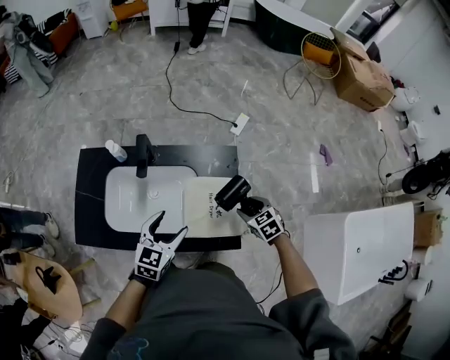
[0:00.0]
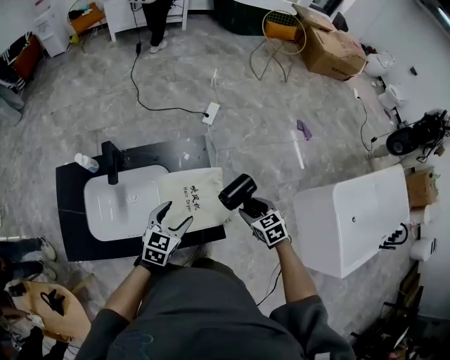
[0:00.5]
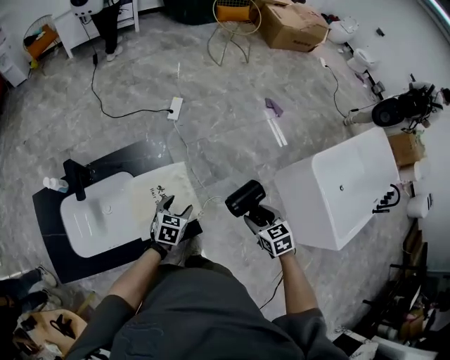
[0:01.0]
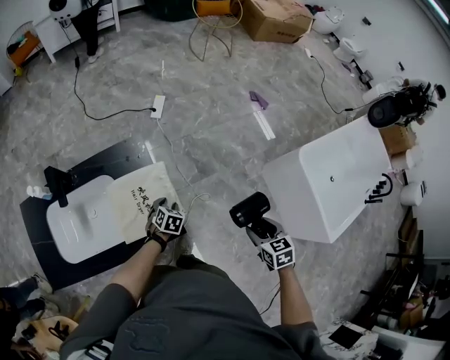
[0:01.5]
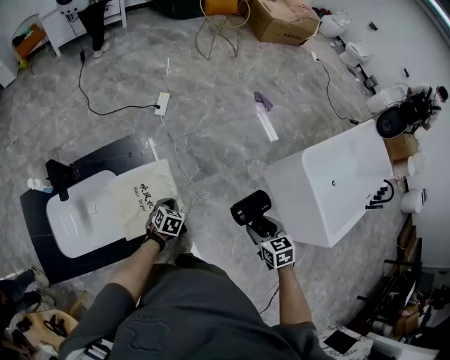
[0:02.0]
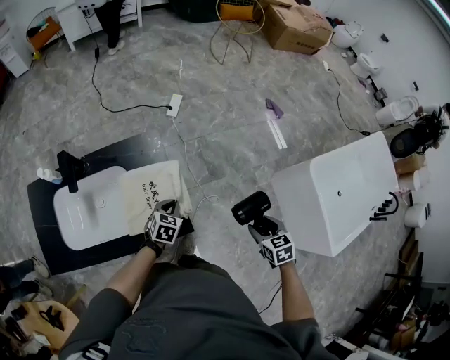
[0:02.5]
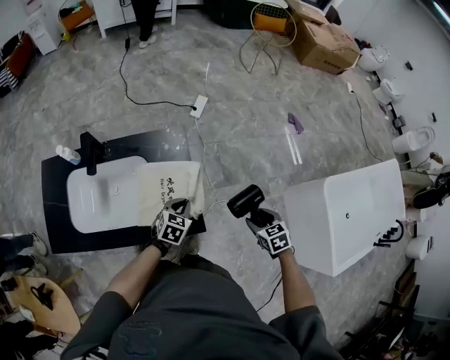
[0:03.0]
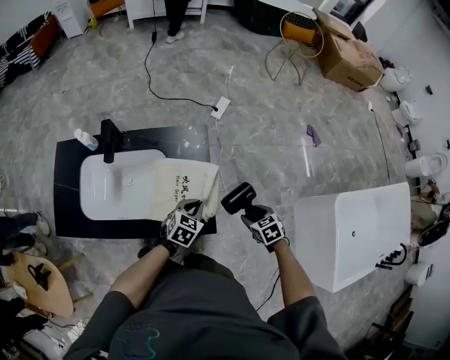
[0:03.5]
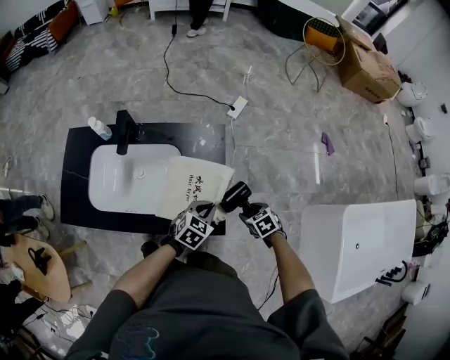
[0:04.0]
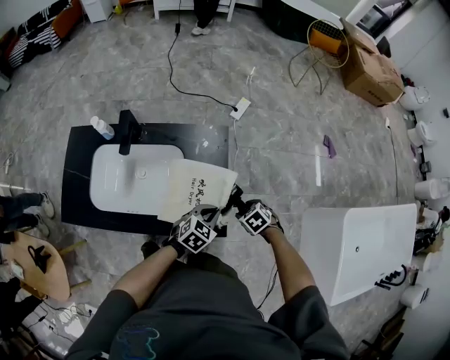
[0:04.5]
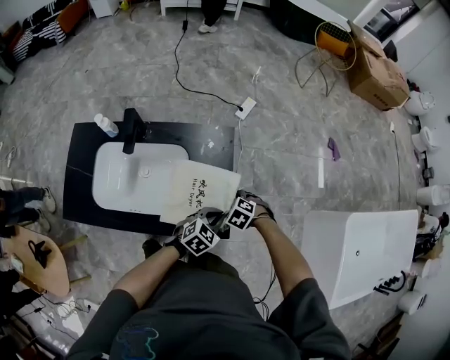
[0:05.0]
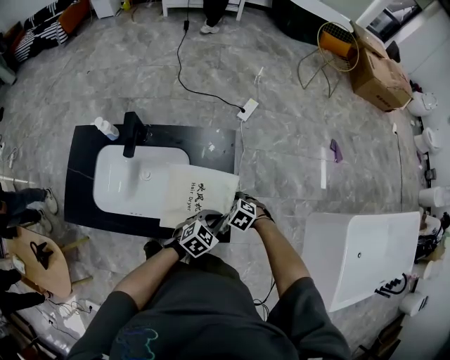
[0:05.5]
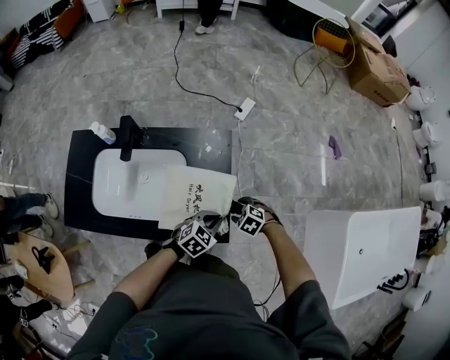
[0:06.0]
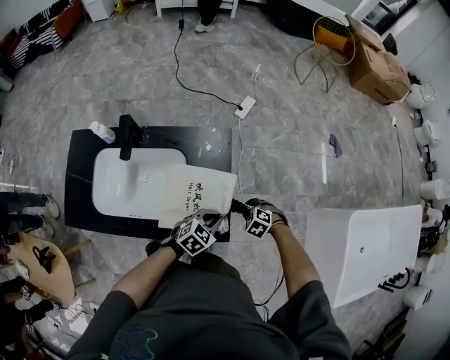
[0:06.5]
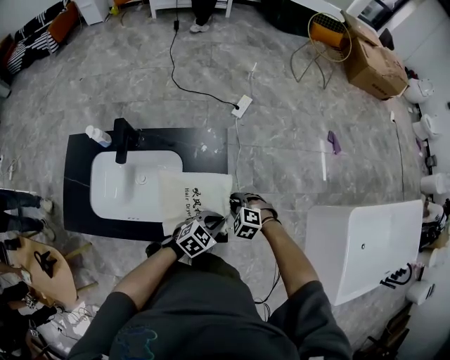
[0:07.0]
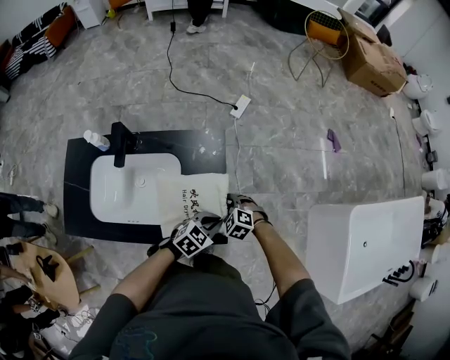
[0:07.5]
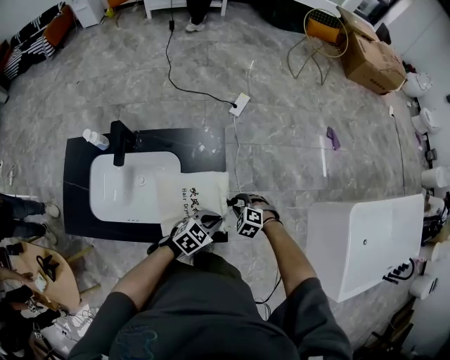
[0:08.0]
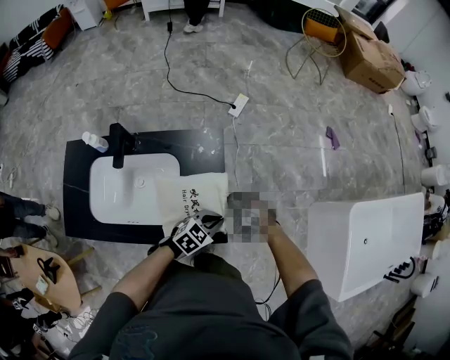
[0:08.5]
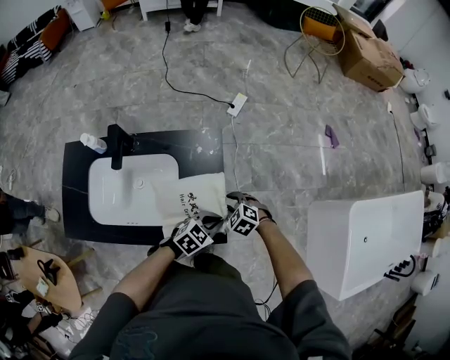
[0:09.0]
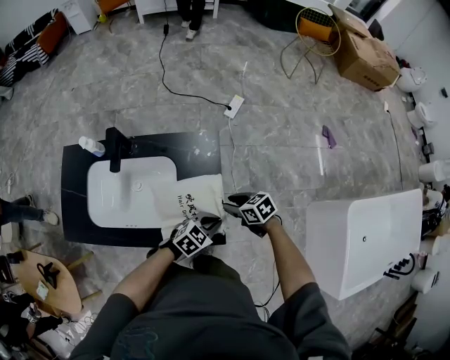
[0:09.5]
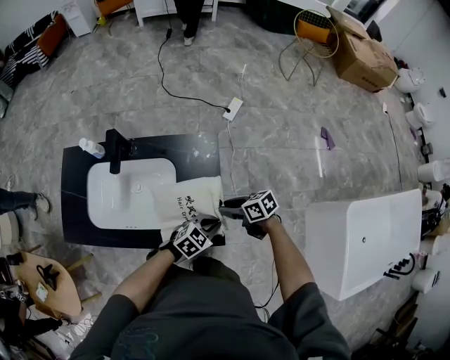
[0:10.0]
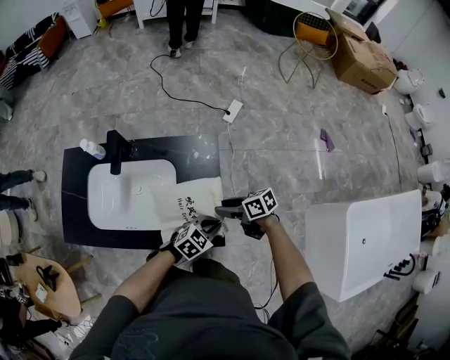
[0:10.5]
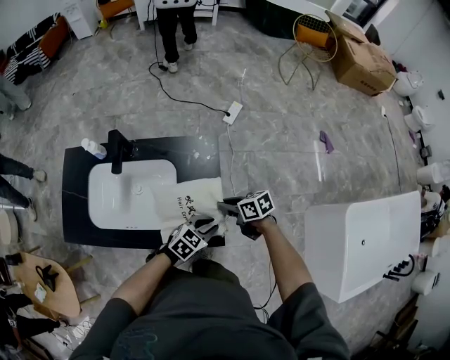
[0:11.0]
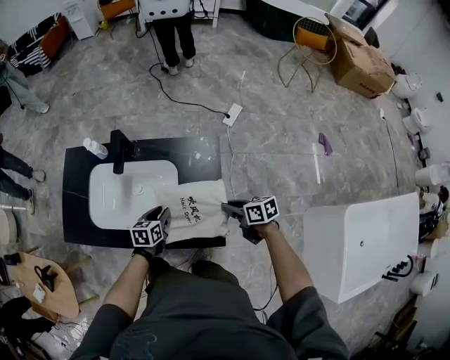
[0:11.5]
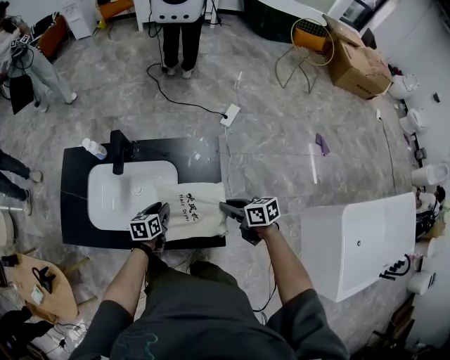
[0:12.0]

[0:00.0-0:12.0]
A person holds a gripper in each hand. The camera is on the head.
0:00.0 to 0:02.0: The left gripper ends up about 35 cm from where it was, turns by some 30 degrees, and closes its fingers, while the right gripper ends up roughly 35 cm from where it was, and rotates some 40 degrees.
0:02.0 to 0:04.0: The left gripper heads upward and to the left, covering some 10 cm, while the right gripper moves to the left, downward and forward, approximately 25 cm, and turns by about 40 degrees.
0:04.0 to 0:06.0: The right gripper changes its angle by roughly 30 degrees.
0:06.0 to 0:08.0: The right gripper closes up.
0:08.0 to 0:10.0: The right gripper heads upward, covering some 5 cm, and tips its fingers upward by about 30 degrees.
0:10.0 to 0:12.0: The left gripper shifts by about 25 cm, and rolls counterclockwise, seen from behind, by about 50 degrees.

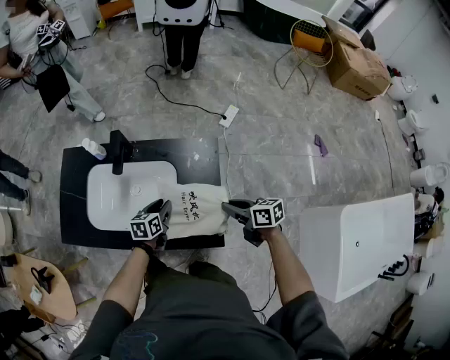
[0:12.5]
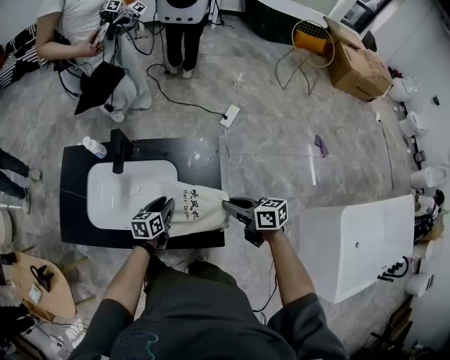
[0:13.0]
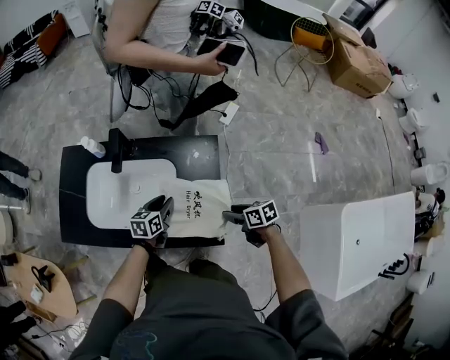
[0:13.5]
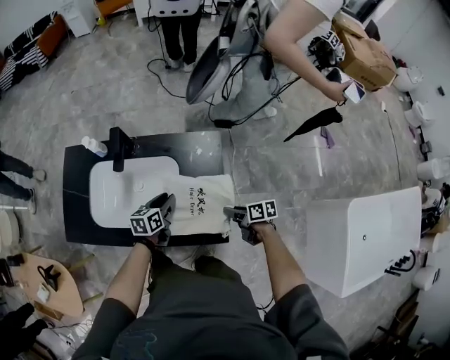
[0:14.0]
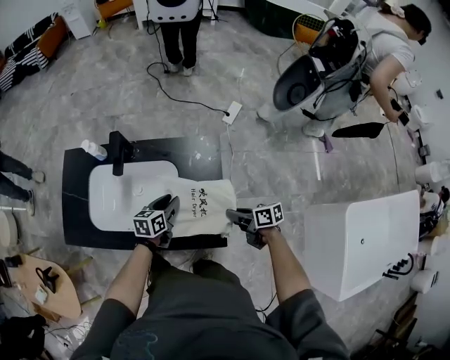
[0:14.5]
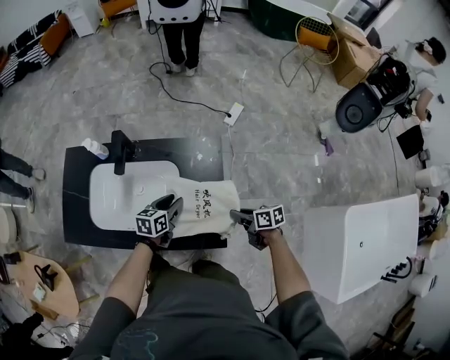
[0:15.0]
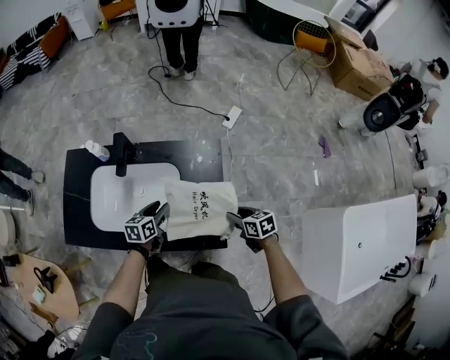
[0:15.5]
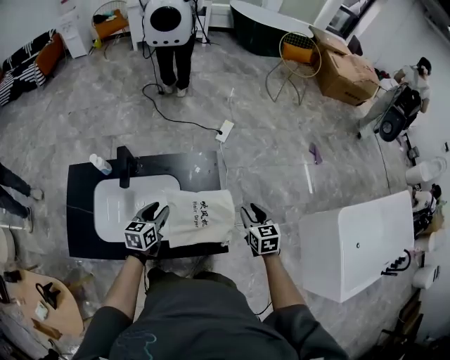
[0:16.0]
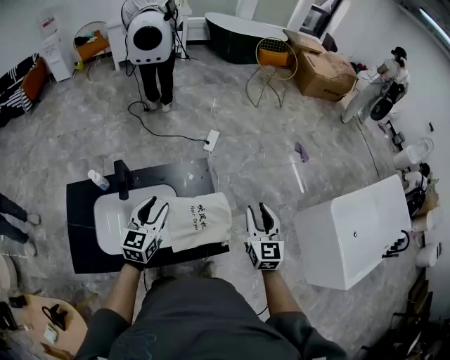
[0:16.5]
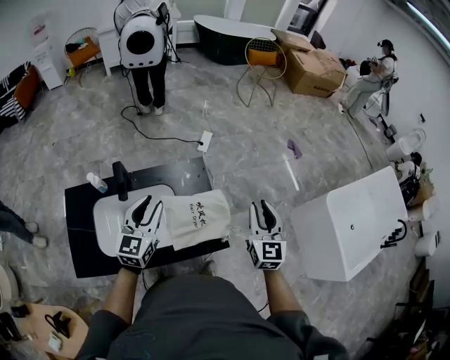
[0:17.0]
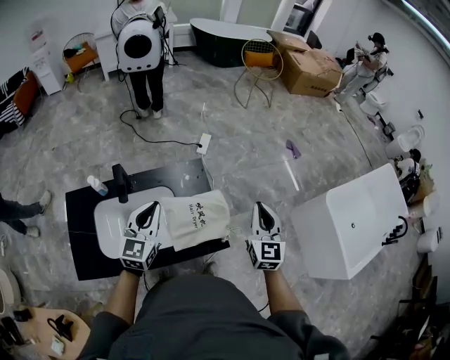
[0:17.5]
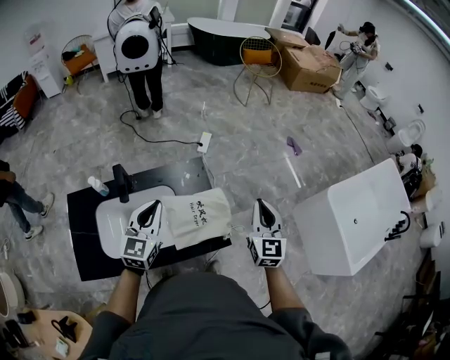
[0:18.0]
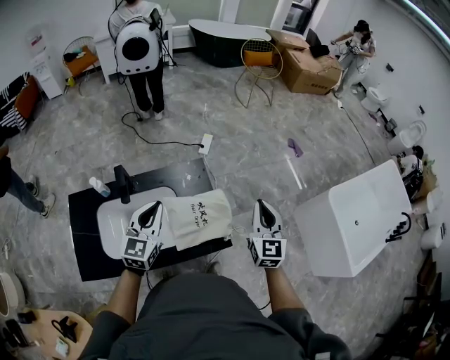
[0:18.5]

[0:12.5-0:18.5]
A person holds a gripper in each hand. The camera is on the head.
0:12.5 to 0:14.5: The right gripper heads downward, covering roughly 5 cm, and opens and closes again.
0:14.5 to 0:16.5: The two grippers go roughly 25 cm upward. The left gripper turns by roughly 40 degrees, while the right gripper changes its angle by approximately 80 degrees, and opens.
0:16.5 to 0:18.5: The right gripper ends up about 5 cm from where it was, and closes up; the left gripper heads upward, covering about 5 cm, and closes its fingers.

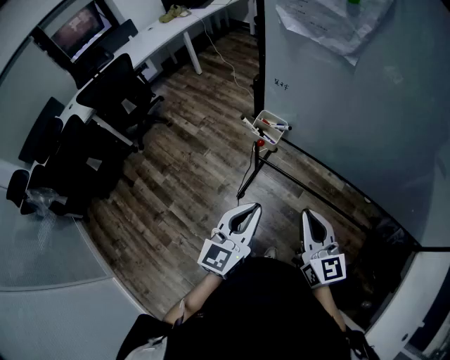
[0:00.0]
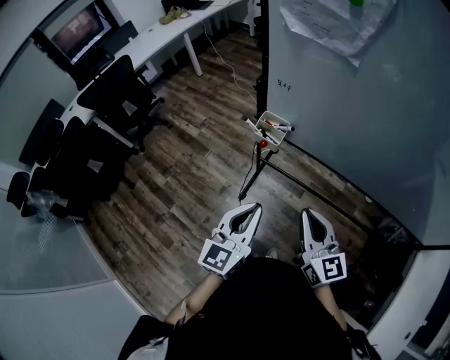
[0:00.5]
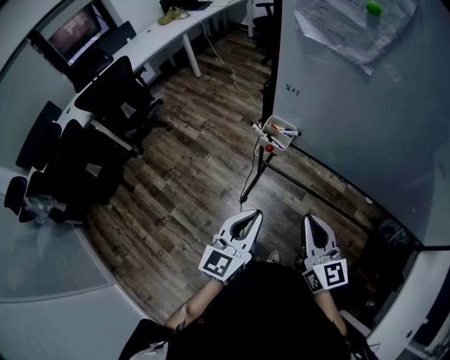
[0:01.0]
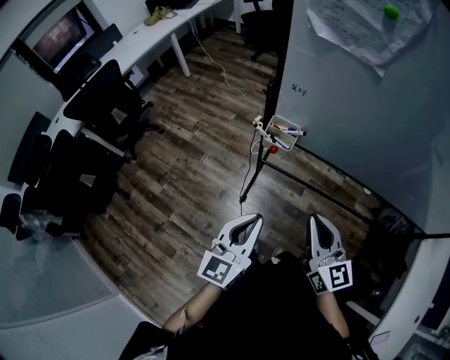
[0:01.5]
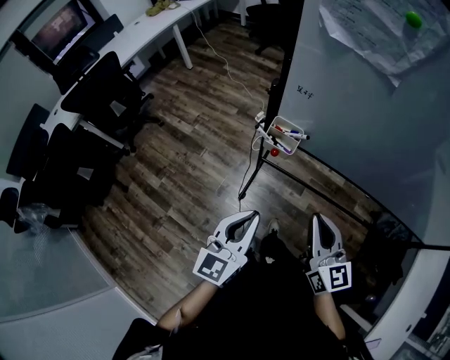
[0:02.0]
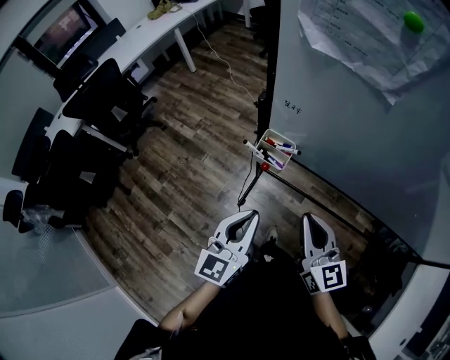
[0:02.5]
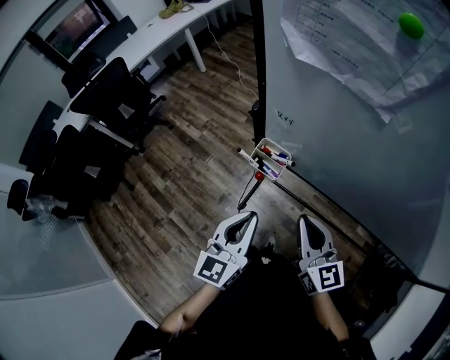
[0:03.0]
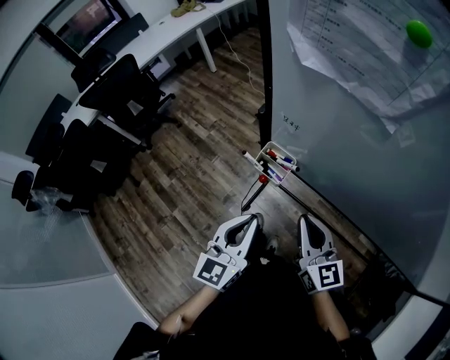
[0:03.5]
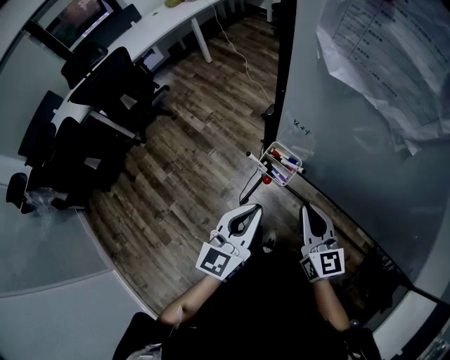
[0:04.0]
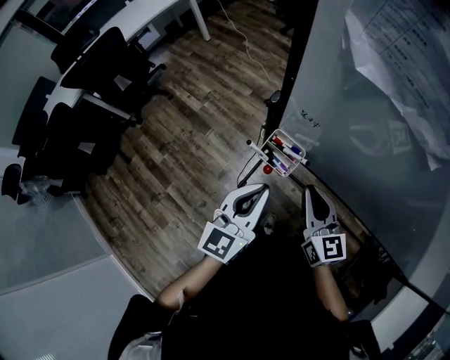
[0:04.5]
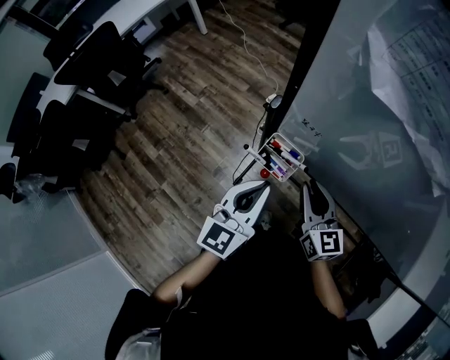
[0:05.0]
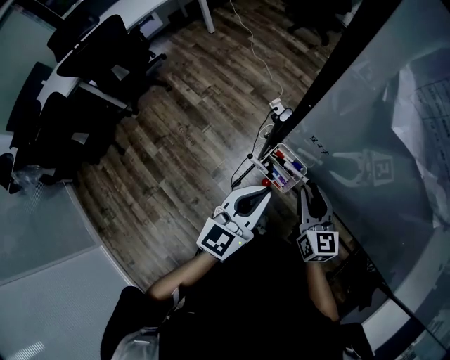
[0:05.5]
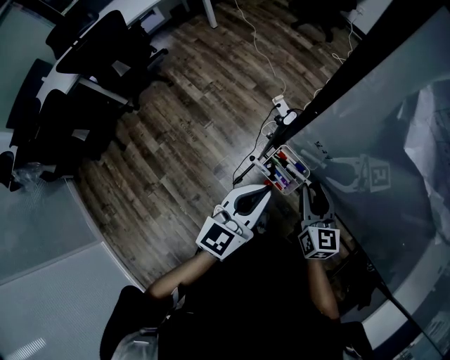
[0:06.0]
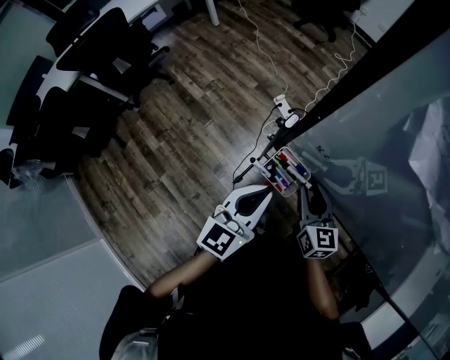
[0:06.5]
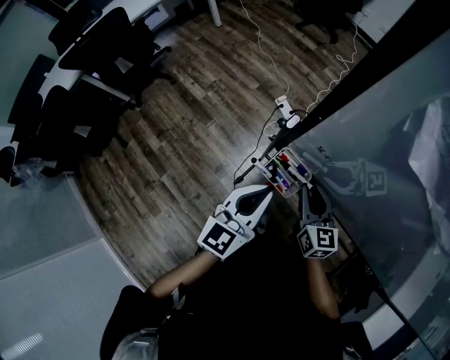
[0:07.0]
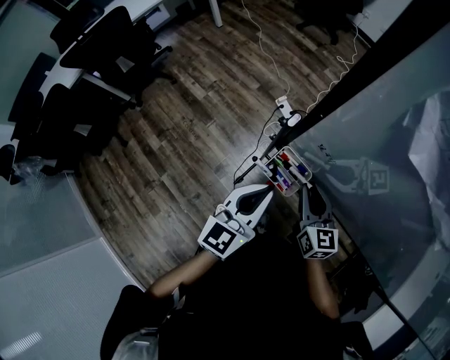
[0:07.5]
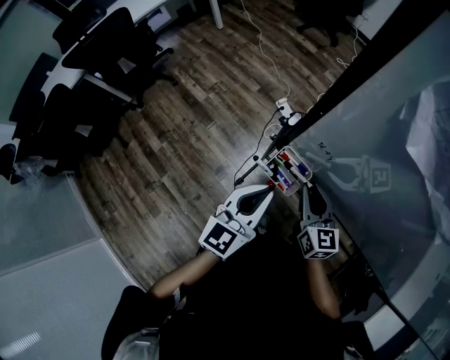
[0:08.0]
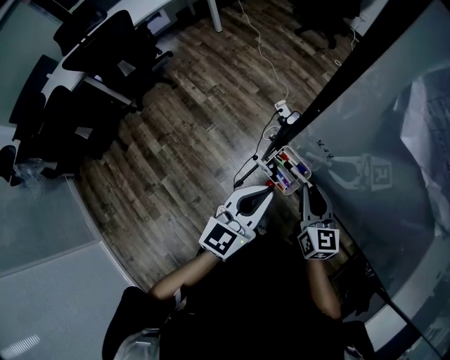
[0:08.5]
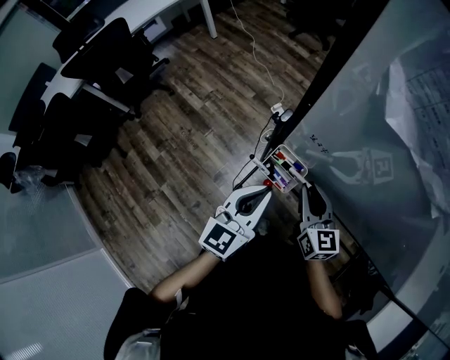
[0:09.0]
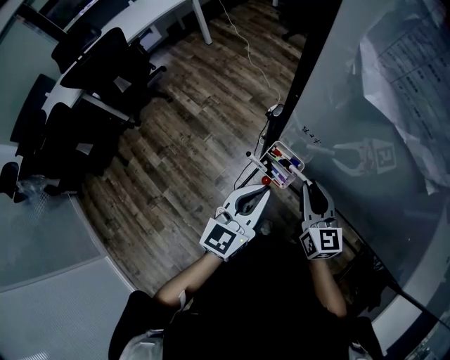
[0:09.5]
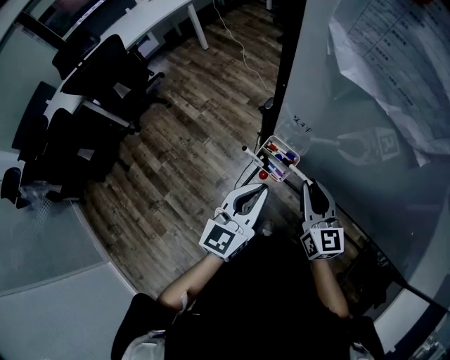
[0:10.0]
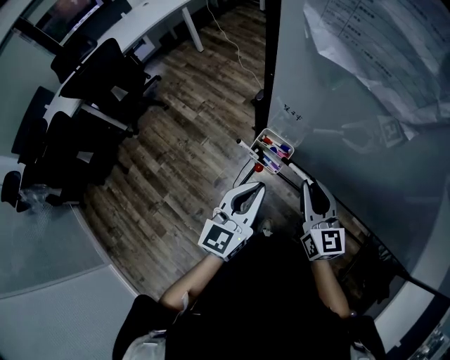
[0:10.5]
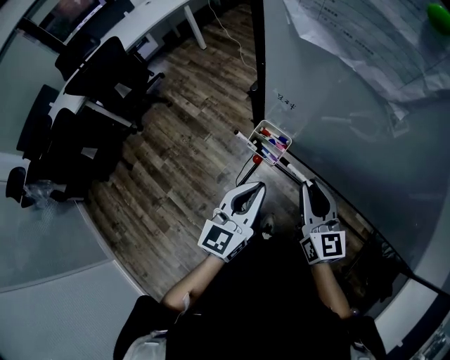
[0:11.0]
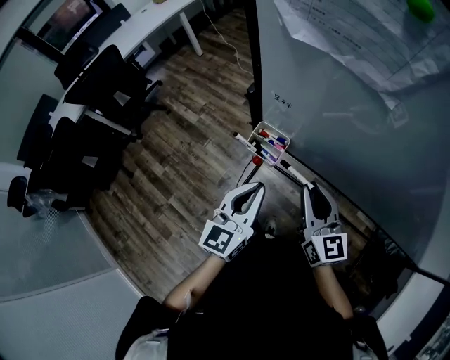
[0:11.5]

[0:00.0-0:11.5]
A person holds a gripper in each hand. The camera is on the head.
0:00.0 to 0:02.0: The left gripper travels to the left by about 10 cm, while the right gripper heads to the left, covering about 5 cm.
0:02.0 to 0:04.0: The right gripper heads forward, covering about 15 cm. The left gripper heads forward and to the right, covering some 15 cm.
0:04.0 to 0:06.0: The right gripper heads forward and downward, covering some 15 cm, and opens; the left gripper shifts some 10 cm forward.
0:06.0 to 0:07.5: The grippers stay close to where they were, moving slightly.
0:07.5 to 0:09.5: The right gripper goes roughly 5 cm upward.
0:09.5 to 0:11.5: The left gripper shifts approximately 5 cm backward. The right gripper travels backward and upward by roughly 10 cm.
